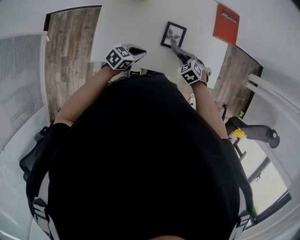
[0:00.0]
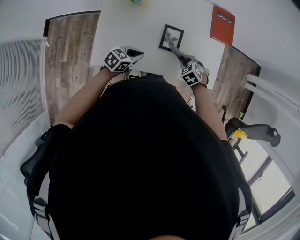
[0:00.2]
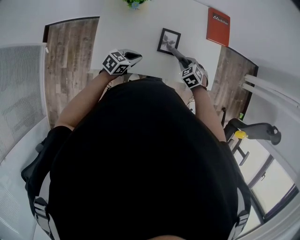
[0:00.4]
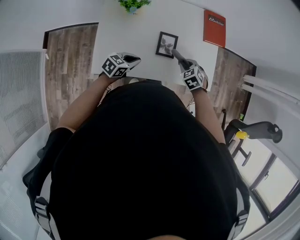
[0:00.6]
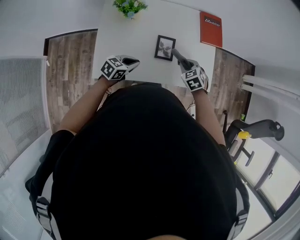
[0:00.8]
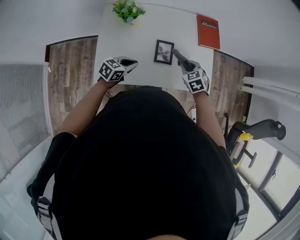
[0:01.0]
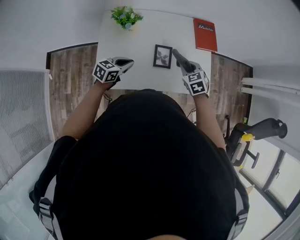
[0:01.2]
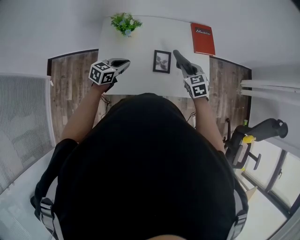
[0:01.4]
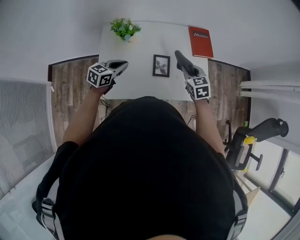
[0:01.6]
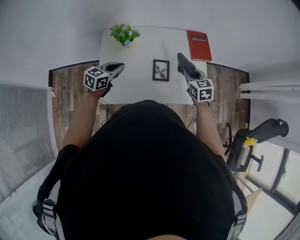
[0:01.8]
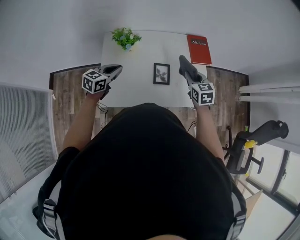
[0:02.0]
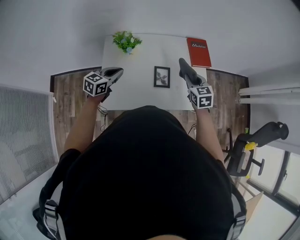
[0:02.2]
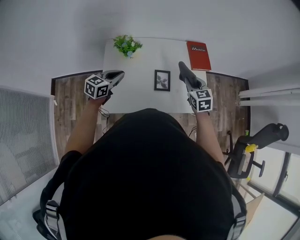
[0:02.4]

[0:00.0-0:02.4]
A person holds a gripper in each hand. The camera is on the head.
0:00.0 to 0:01.2: The right gripper travels upward by roughly 15 cm, and changes its angle by approximately 30 degrees, while the left gripper heads upward and to the left, covering some 10 cm.
0:01.2 to 0:02.4: The left gripper travels upward and to the left by some 10 cm. The right gripper is displaced upward by some 10 cm.

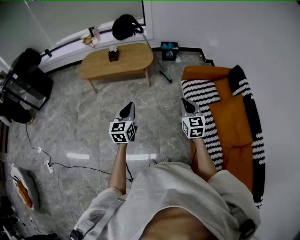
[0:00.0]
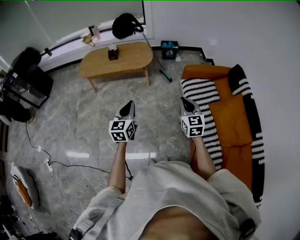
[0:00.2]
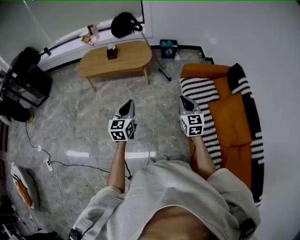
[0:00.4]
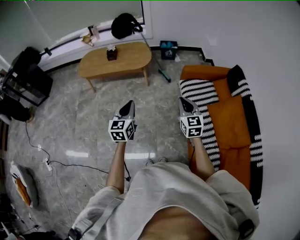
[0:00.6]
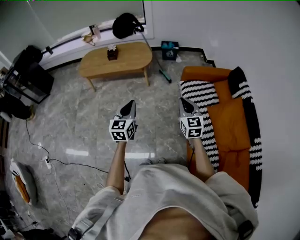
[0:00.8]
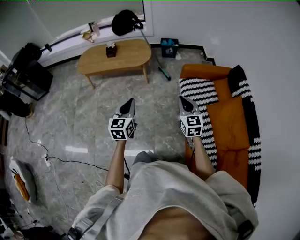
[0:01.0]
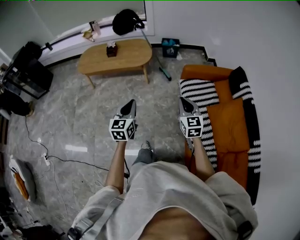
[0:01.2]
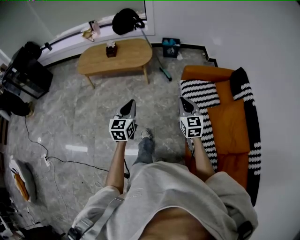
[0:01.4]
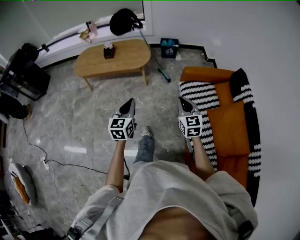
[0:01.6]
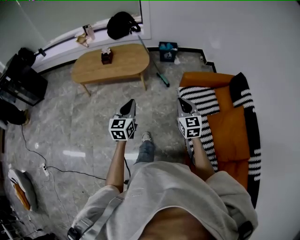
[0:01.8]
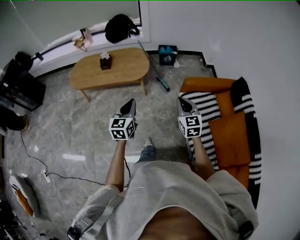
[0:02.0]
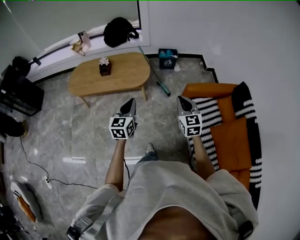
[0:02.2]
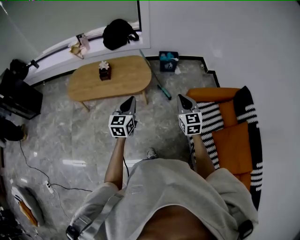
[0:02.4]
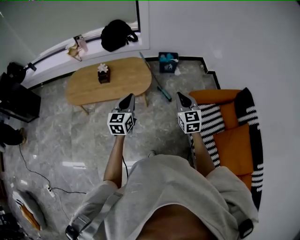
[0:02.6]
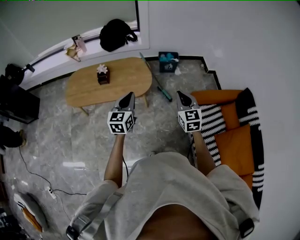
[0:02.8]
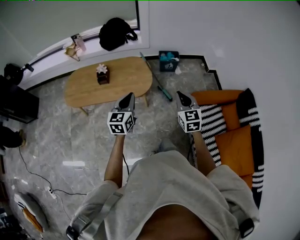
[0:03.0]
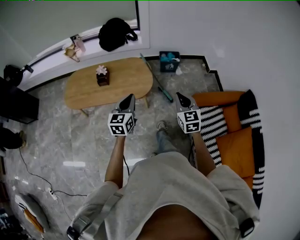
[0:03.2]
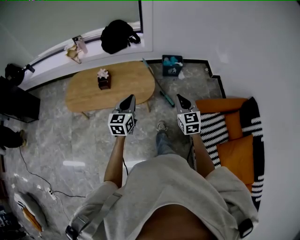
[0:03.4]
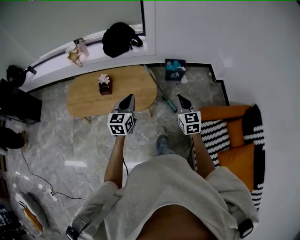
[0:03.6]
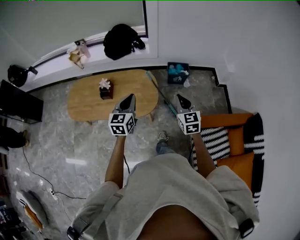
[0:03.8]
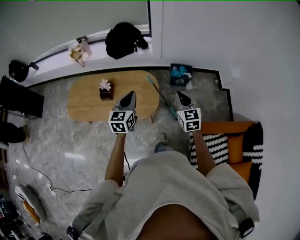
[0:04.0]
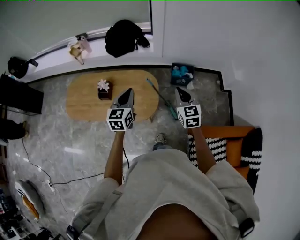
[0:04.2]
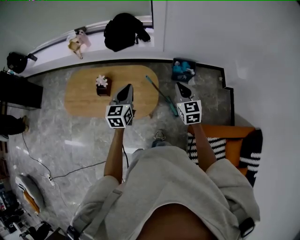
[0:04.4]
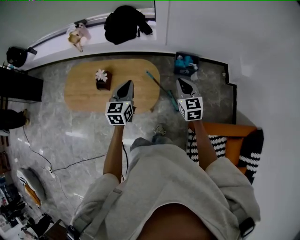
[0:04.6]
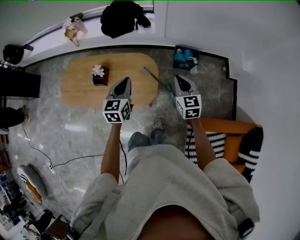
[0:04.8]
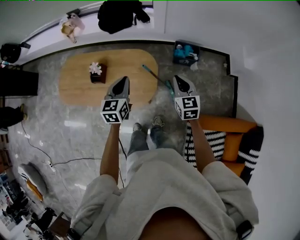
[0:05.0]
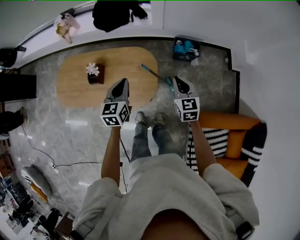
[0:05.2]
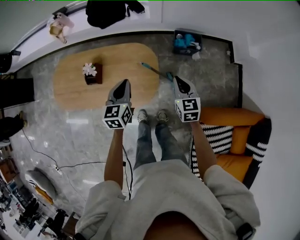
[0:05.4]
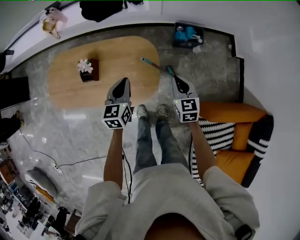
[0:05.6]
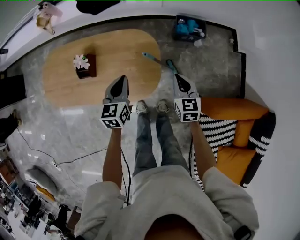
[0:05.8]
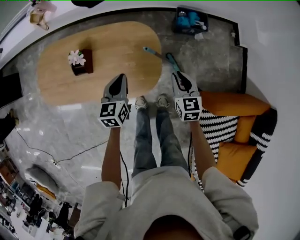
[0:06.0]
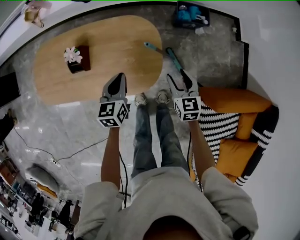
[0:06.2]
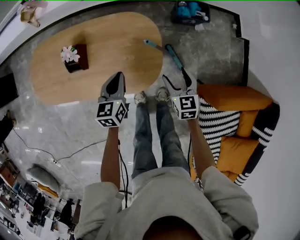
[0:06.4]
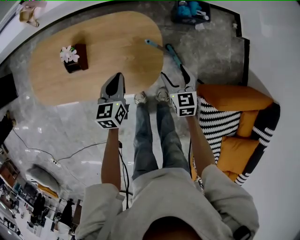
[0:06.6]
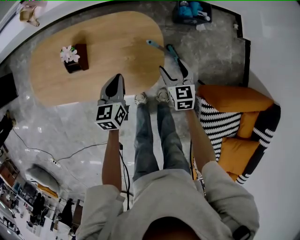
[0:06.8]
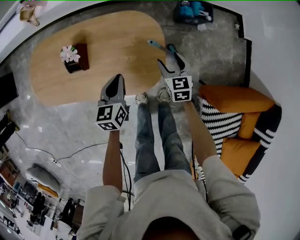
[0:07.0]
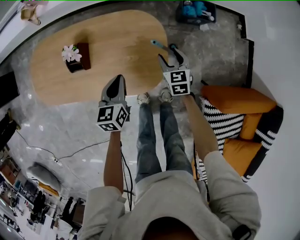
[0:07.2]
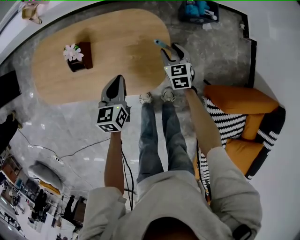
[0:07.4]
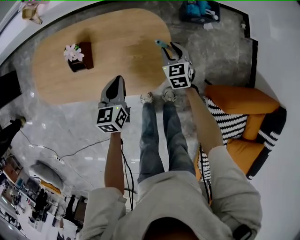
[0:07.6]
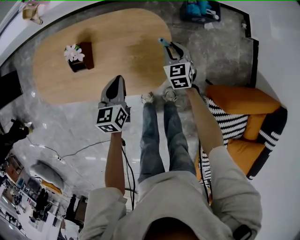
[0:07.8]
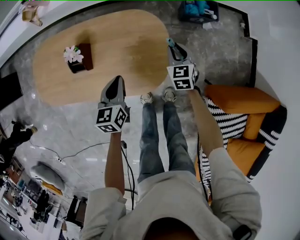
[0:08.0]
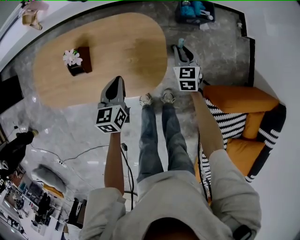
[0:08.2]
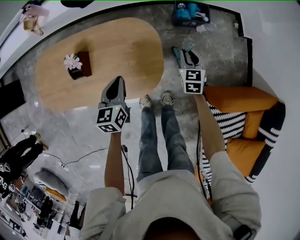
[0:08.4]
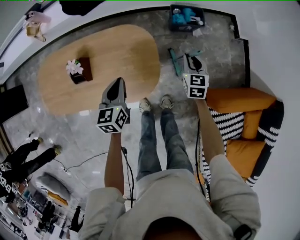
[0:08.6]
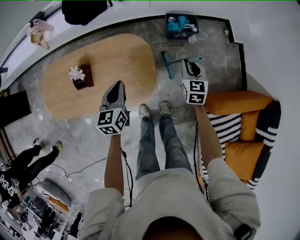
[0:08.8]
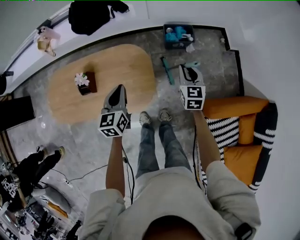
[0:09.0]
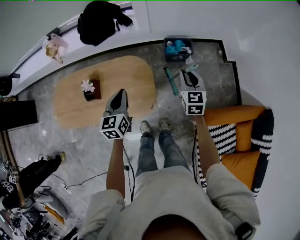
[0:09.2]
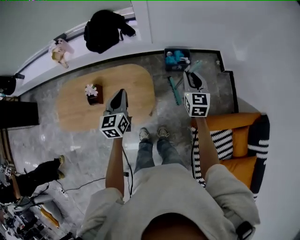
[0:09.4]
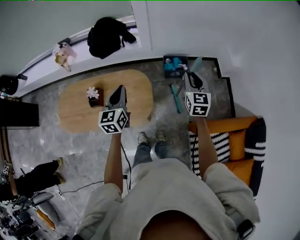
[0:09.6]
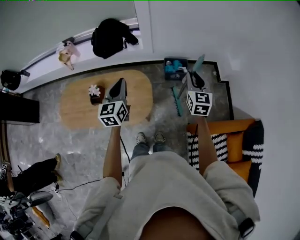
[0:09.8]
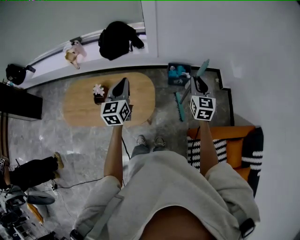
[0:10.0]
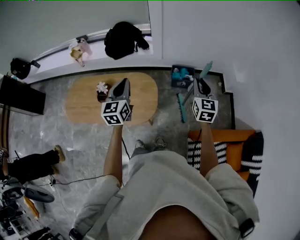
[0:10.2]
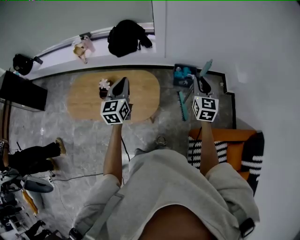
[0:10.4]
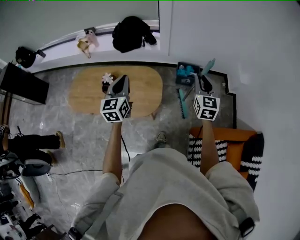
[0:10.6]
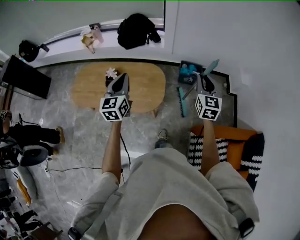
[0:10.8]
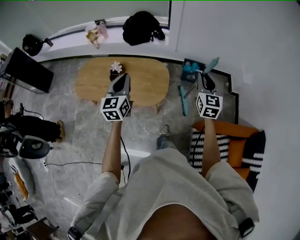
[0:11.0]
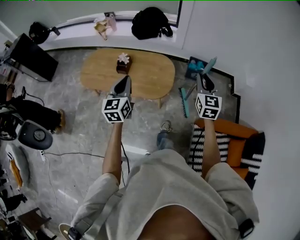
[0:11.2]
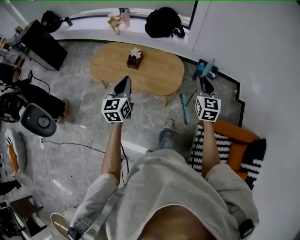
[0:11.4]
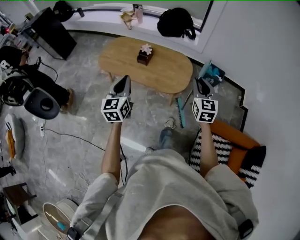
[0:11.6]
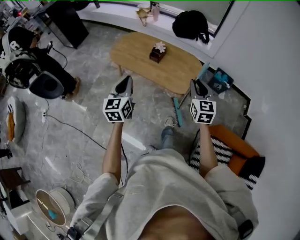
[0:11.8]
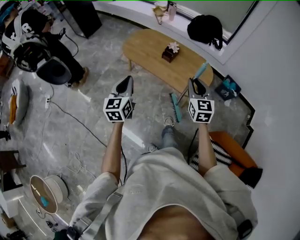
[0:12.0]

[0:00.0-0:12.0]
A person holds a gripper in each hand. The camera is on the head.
0:00.0 to 0:01.6: The left gripper shifts roughly 10 cm forward and to the right. Meanwhile the right gripper heads forward, covering approximately 10 cm.
0:01.6 to 0:03.0: The two grippers go roughly 35 cm forward.
0:03.0 to 0:04.4: Both grippers move forward, some 35 cm.
0:04.4 to 0:06.0: The grippers both shift downward by about 25 cm.
0:06.0 to 0:07.6: The right gripper heads downward, forward and to the left, covering about 15 cm, and opens and closes again. The left gripper moves downward, roughly 5 cm.
0:07.6 to 0:09.0: The left gripper moves upward and to the right, approximately 15 cm. Meanwhile the right gripper goes some 25 cm upward and to the right, and rotates roughly 20 degrees.
0:09.0 to 0:10.4: The two grippers go roughly 25 cm upward. The left gripper swivels some 20 degrees.
0:10.4 to 0:12.0: The pair of grippers is taken approximately 50 cm. The left gripper rotates about 30 degrees. The right gripper swivels about 40 degrees.

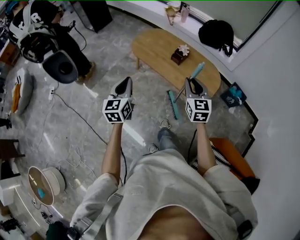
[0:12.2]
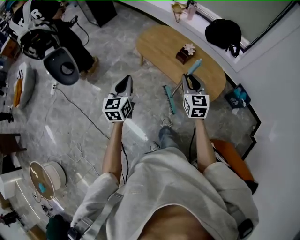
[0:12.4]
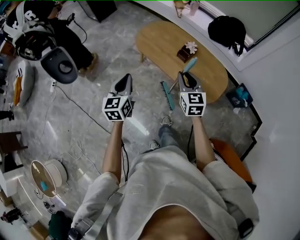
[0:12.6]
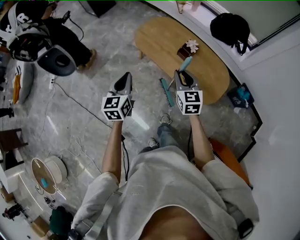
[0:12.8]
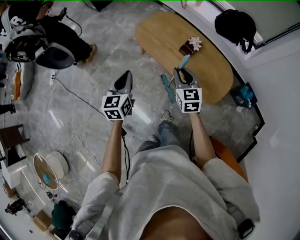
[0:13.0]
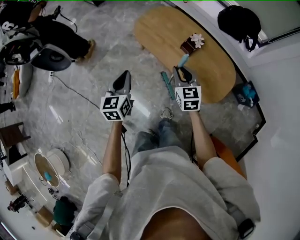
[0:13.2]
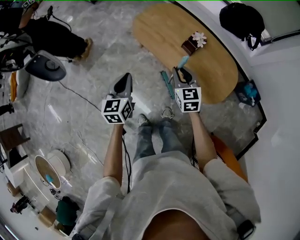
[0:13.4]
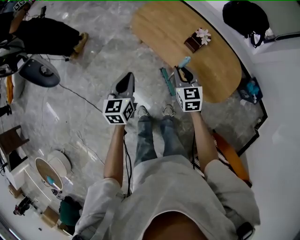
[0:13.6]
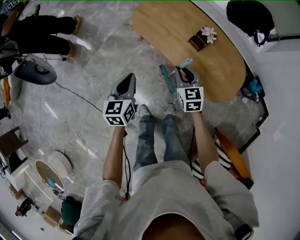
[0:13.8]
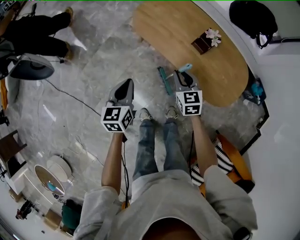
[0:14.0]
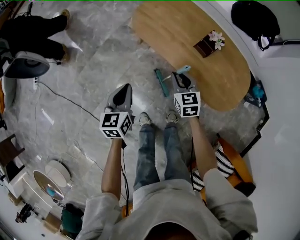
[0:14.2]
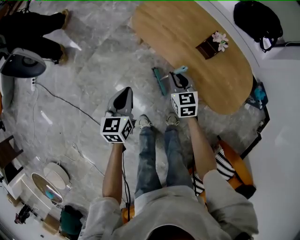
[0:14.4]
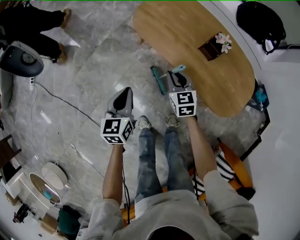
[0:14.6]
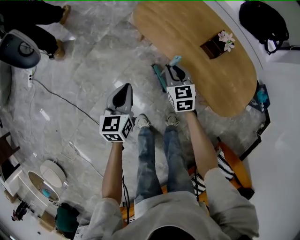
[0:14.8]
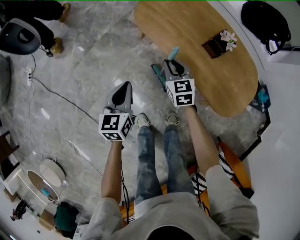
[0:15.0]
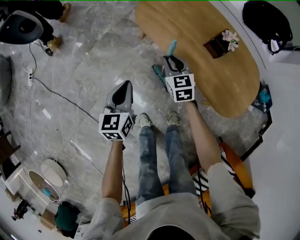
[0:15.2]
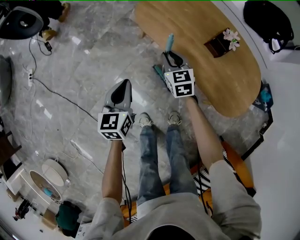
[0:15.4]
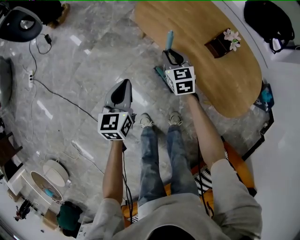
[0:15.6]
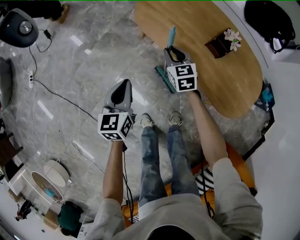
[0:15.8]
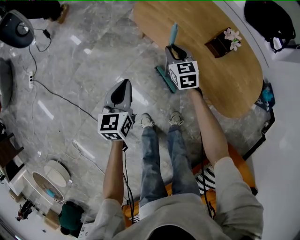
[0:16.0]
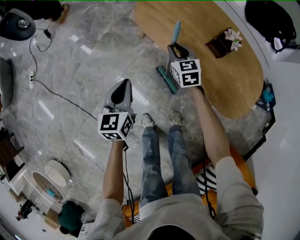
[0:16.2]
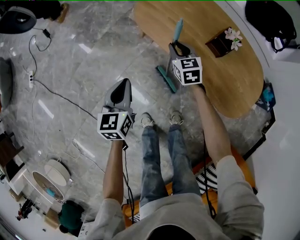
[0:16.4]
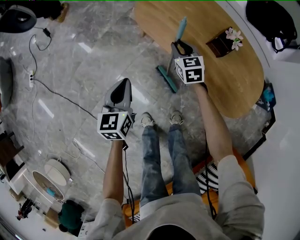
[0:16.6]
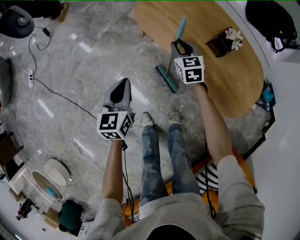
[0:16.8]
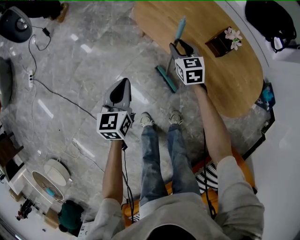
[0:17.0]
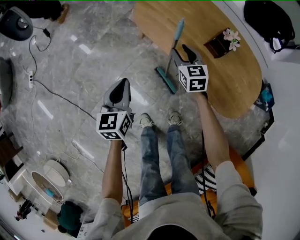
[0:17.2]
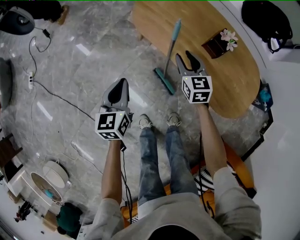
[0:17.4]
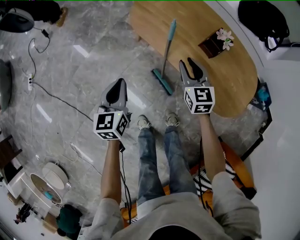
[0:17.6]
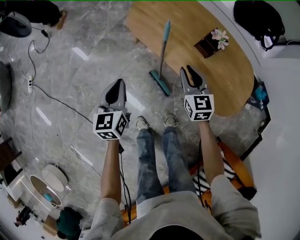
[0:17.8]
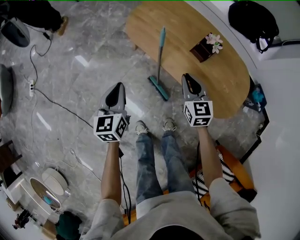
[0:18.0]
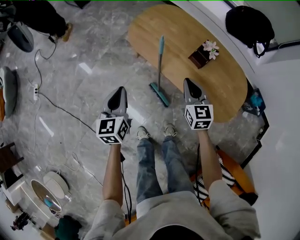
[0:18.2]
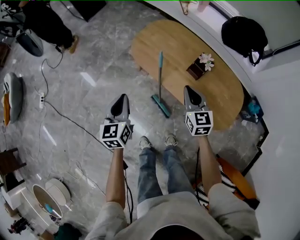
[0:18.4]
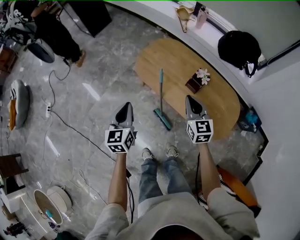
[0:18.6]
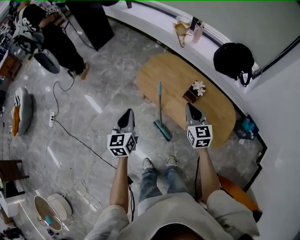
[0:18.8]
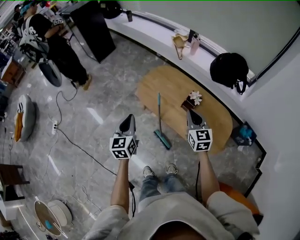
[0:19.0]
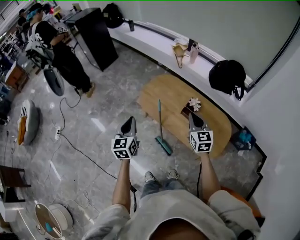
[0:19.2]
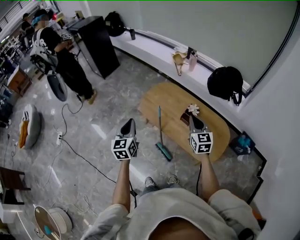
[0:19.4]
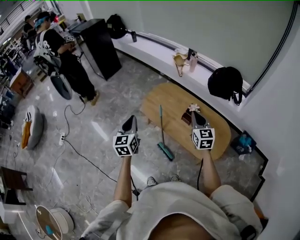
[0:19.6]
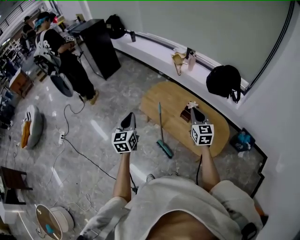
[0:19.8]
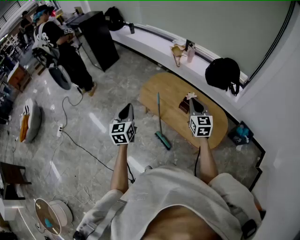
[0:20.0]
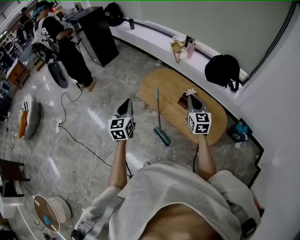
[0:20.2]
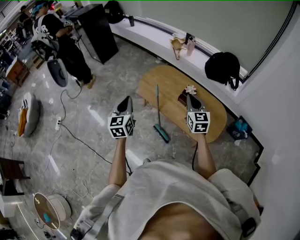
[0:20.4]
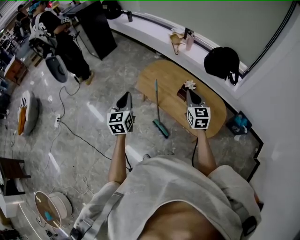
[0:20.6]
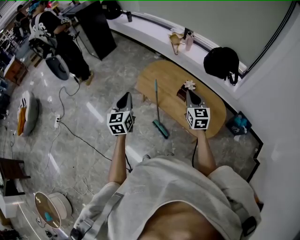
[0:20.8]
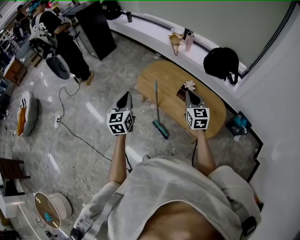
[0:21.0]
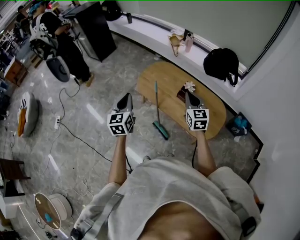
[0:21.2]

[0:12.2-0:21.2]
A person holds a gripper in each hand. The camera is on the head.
0:12.2 to 0:13.8: Both grippers travel together downward and forward, about 30 cm. The right gripper swivels some 20 degrees.
0:13.8 to 0:15.2: The left gripper moves downward and to the left, some 15 cm. The right gripper travels downward, forward and to the left by about 20 cm.
0:15.2 to 0:16.6: The right gripper travels forward by some 5 cm.
0:16.6 to 0:18.2: The right gripper travels upward, backward and to the right by roughly 20 cm. The left gripper is displaced upward by roughly 10 cm.
0:18.2 to 0:19.8: Both grippers travel together upward, about 30 cm.
0:19.8 to 0:21.2: The grippers move only a little.
